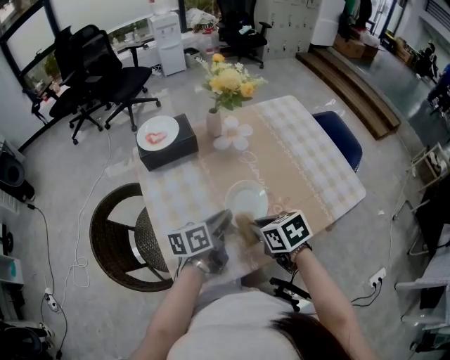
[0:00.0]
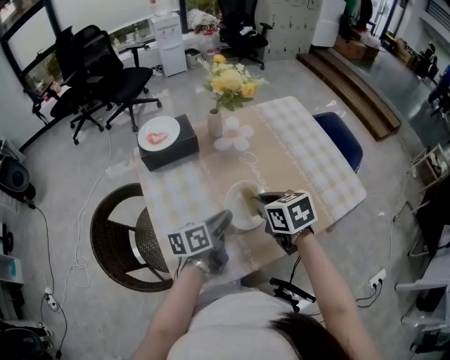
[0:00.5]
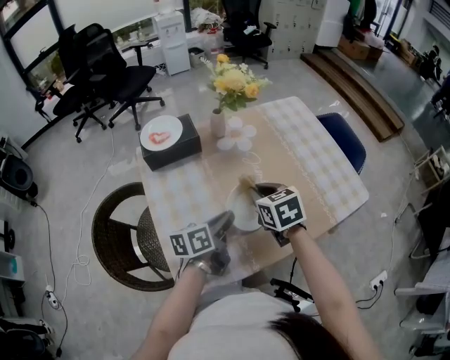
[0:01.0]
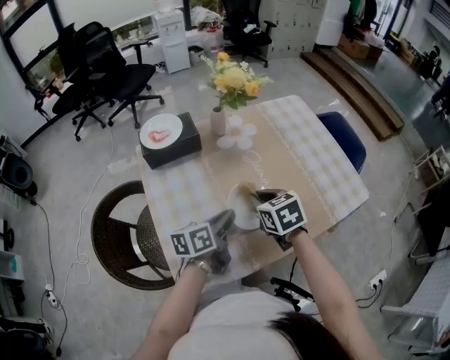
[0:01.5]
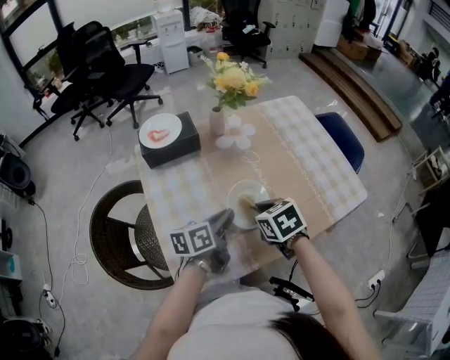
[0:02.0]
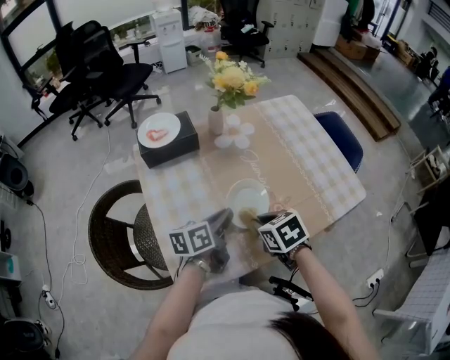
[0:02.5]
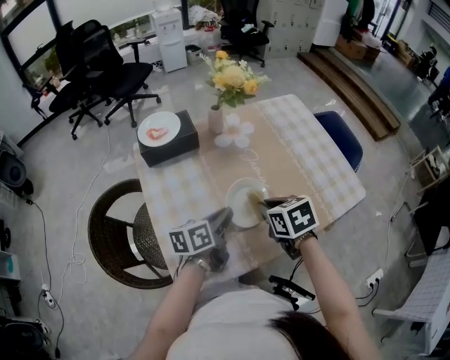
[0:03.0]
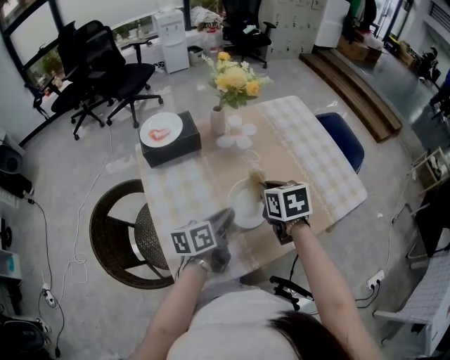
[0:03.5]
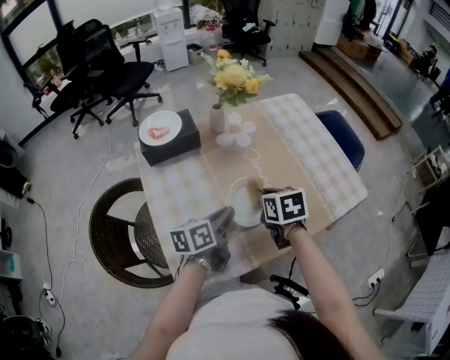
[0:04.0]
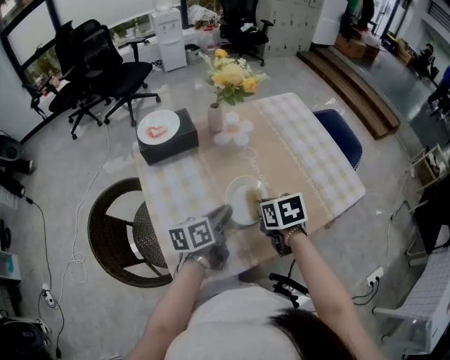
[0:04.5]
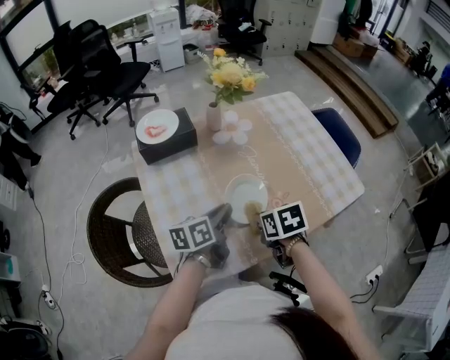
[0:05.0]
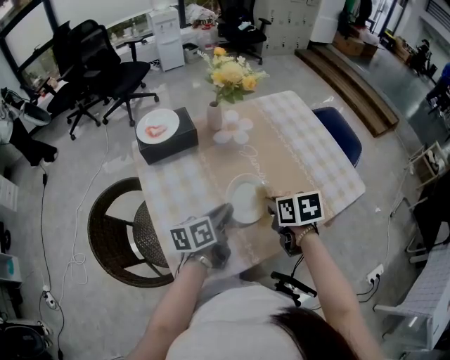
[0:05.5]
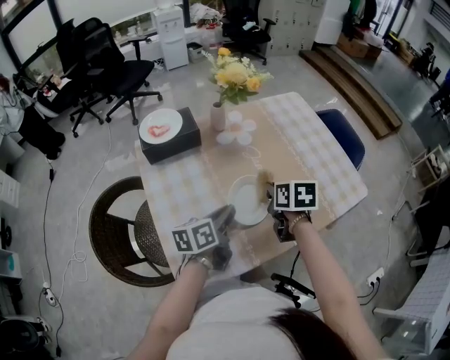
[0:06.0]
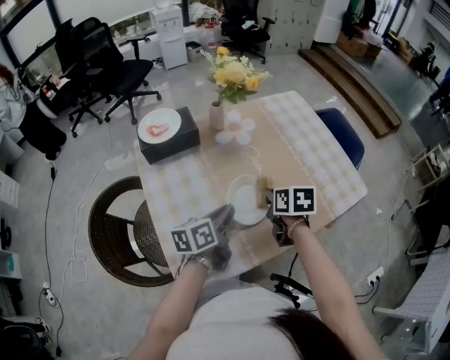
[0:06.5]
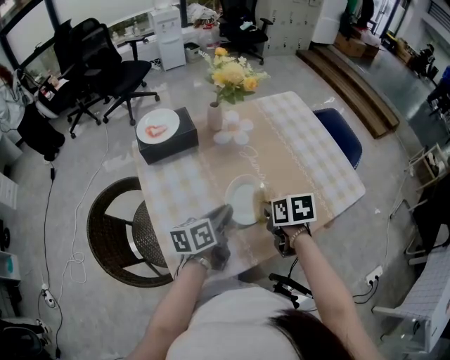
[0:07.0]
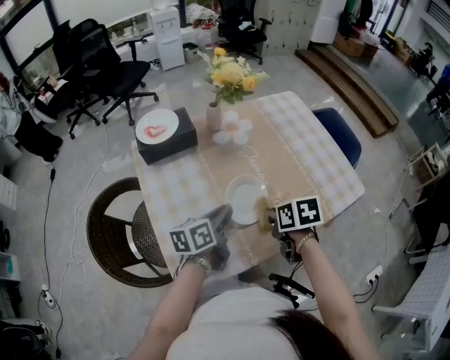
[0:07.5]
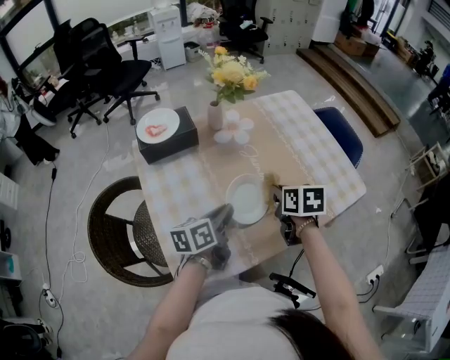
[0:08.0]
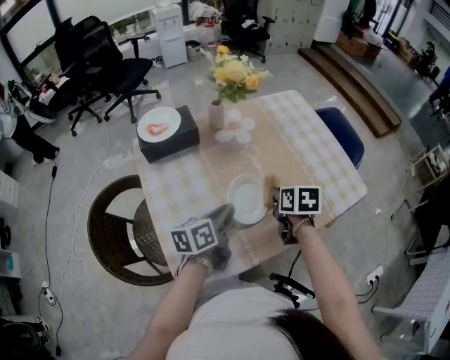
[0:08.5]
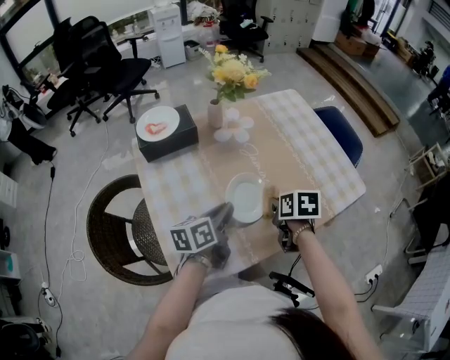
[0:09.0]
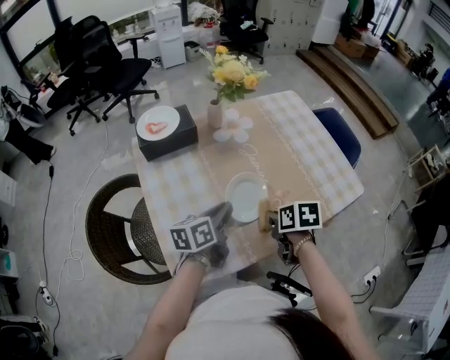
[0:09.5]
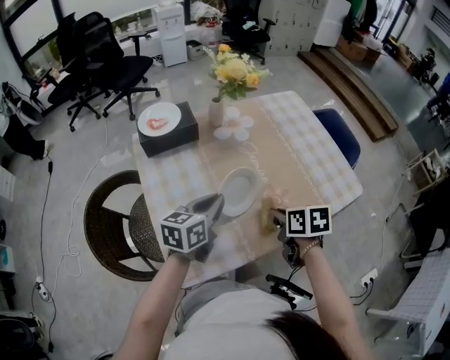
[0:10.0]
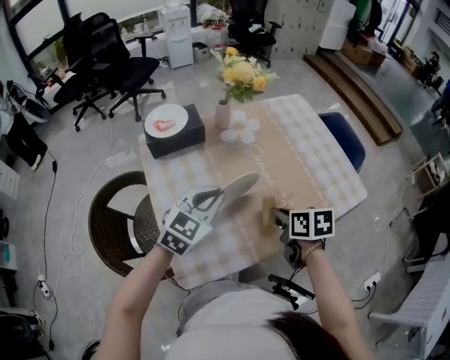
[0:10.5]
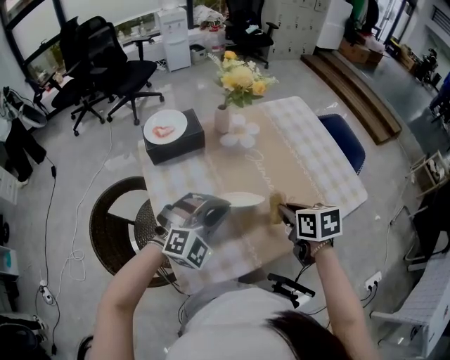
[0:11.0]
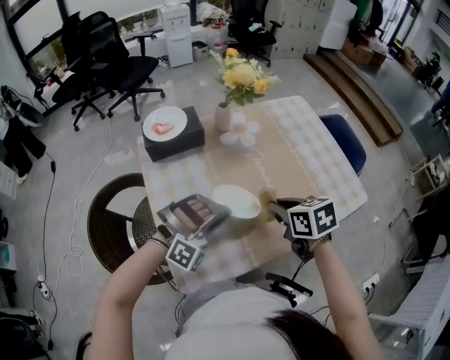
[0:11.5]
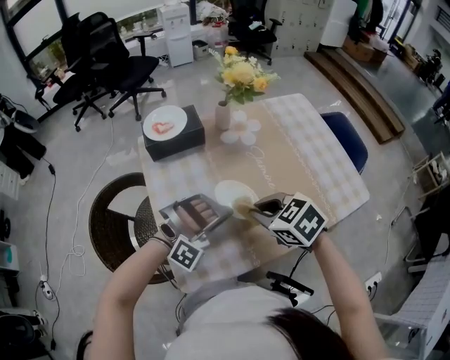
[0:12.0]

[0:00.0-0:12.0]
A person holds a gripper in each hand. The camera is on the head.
0:02.0 to 0:04.0: The right gripper changes place by roughly 5 cm.
0:08.0 to 0:10.0: The right gripper changes place by roughly 10 cm.
0:10.0 to 0:12.0: The right gripper shifts by approximately 10 cm, and rotates around the line of its fingers by roughly 50 degrees, counterclockwise from behind.

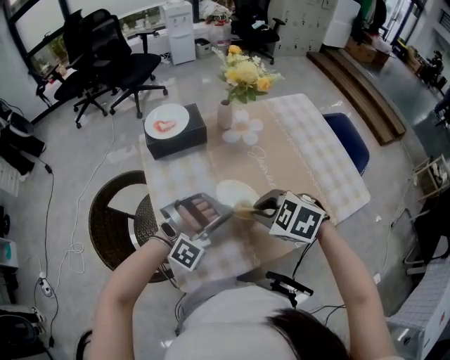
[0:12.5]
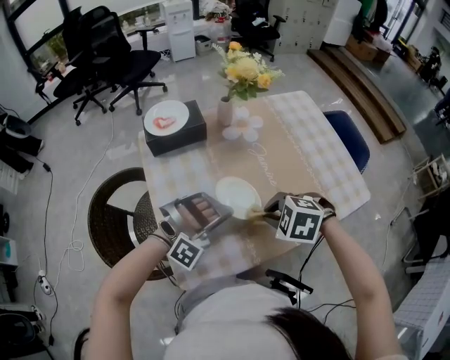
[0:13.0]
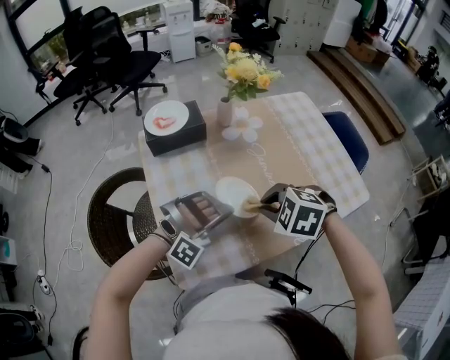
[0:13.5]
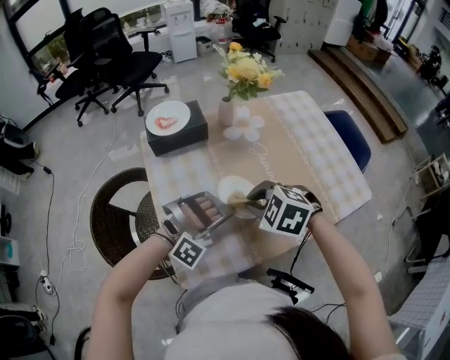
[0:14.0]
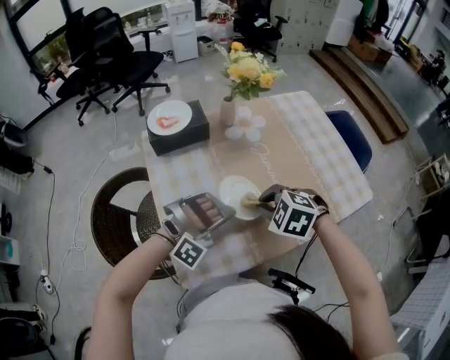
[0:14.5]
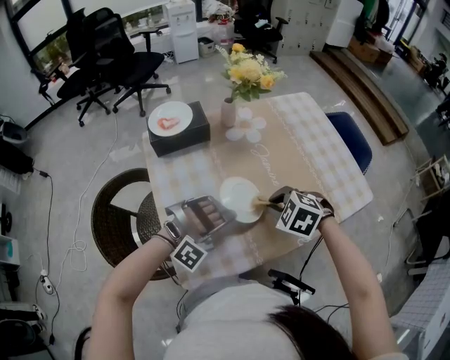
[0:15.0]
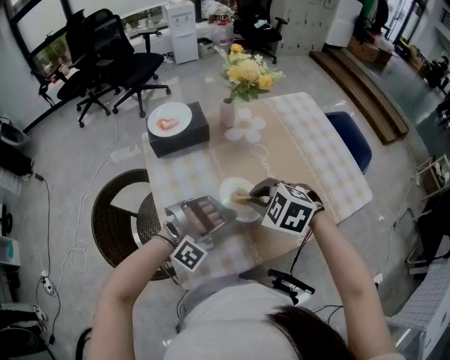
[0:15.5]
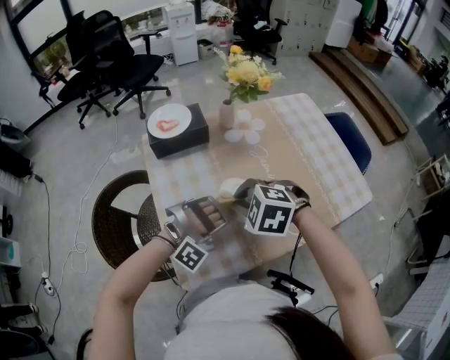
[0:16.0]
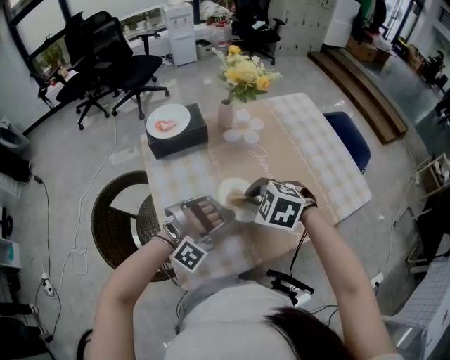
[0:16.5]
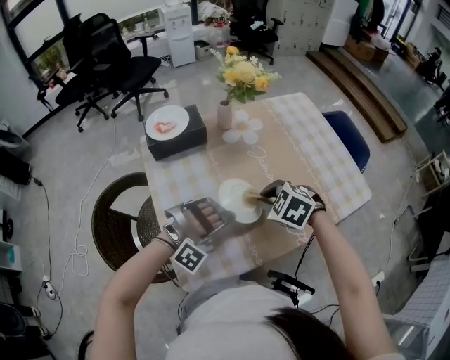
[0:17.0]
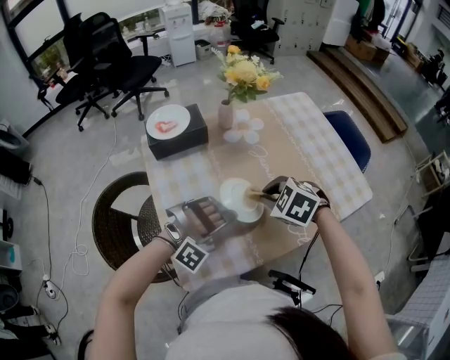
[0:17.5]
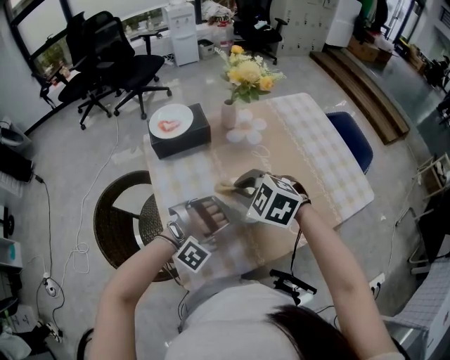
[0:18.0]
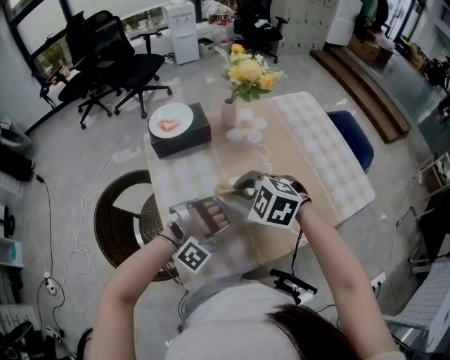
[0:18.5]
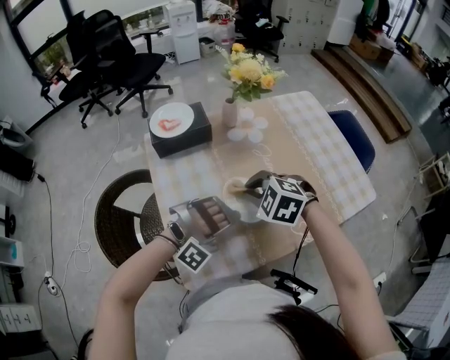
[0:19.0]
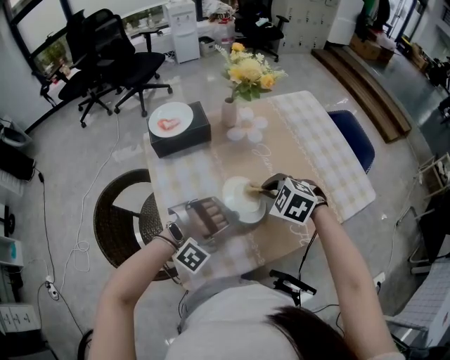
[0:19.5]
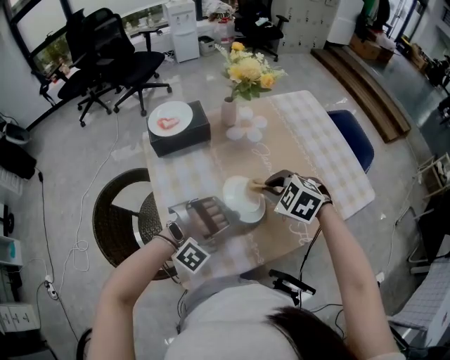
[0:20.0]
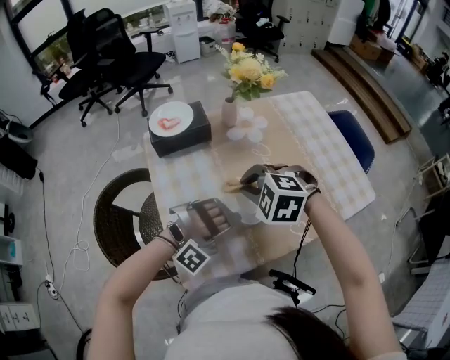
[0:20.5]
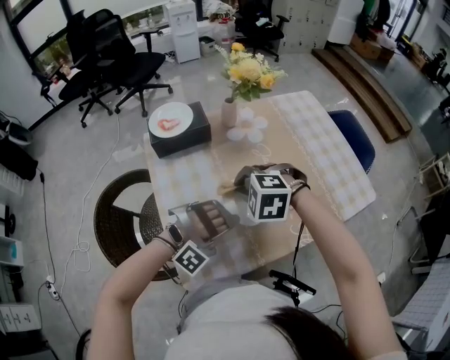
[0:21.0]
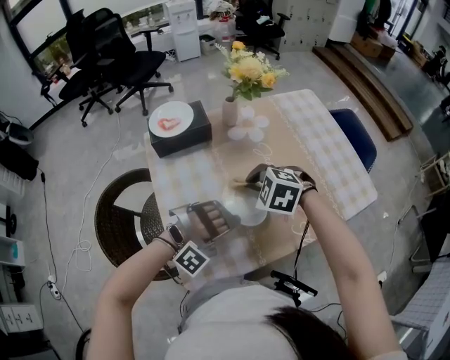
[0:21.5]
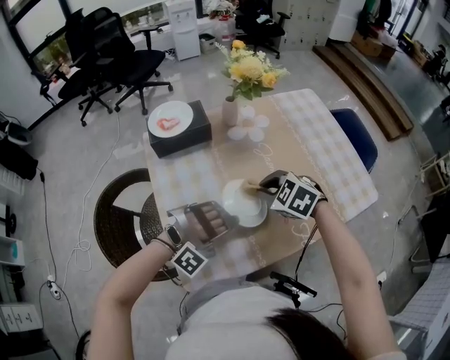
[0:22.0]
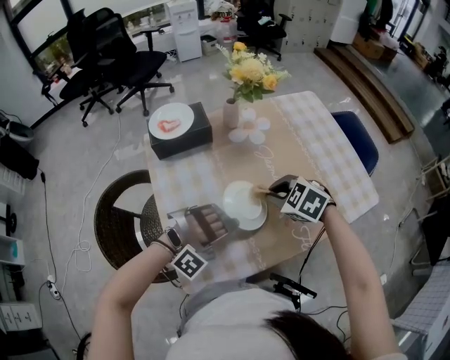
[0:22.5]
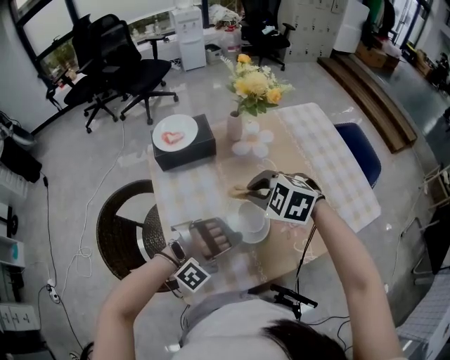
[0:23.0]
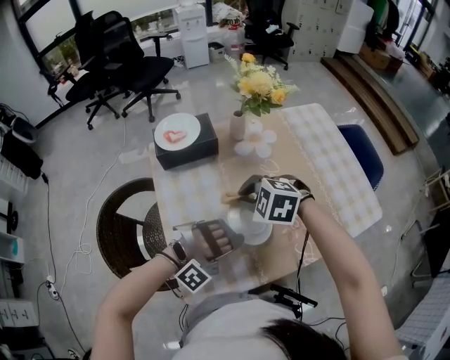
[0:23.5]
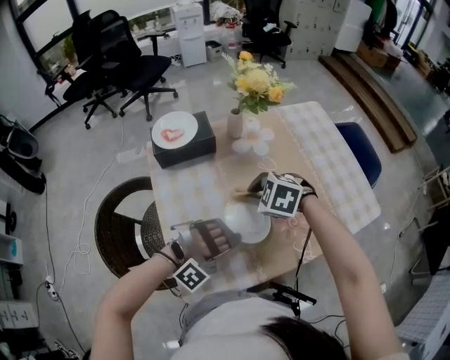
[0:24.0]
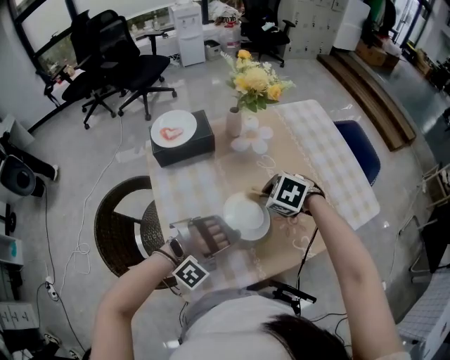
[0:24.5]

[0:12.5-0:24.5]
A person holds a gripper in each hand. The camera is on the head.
0:20.5 to 0:22.5: The right gripper ends up about 10 cm from where it was, and changes its angle by roughly 20 degrees.
0:22.5 to 0:24.5: The right gripper travels upward and back again, roughly 5 cm each way.

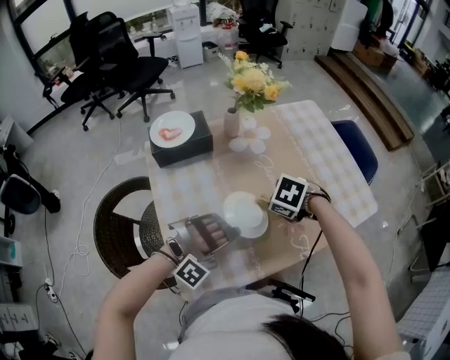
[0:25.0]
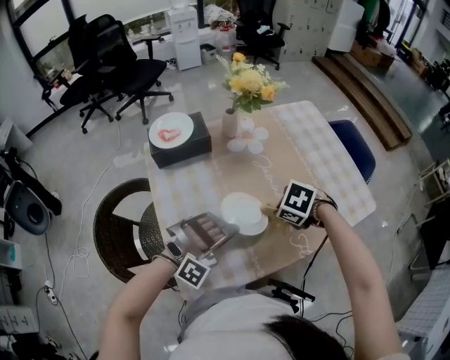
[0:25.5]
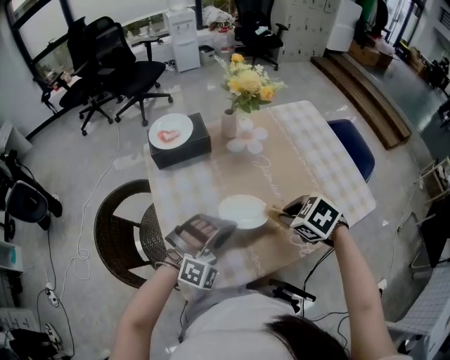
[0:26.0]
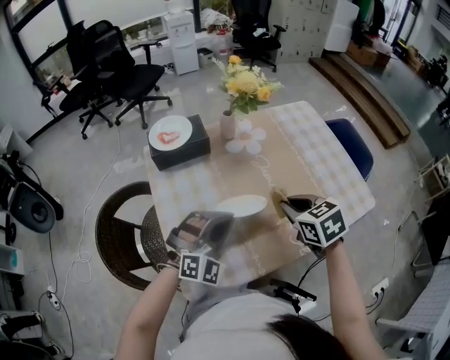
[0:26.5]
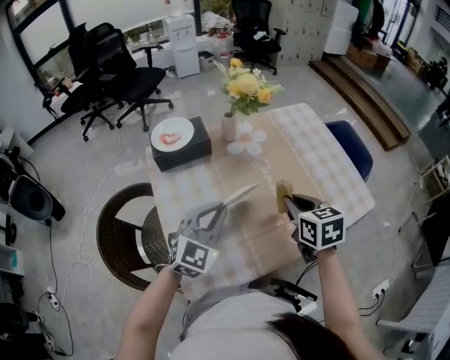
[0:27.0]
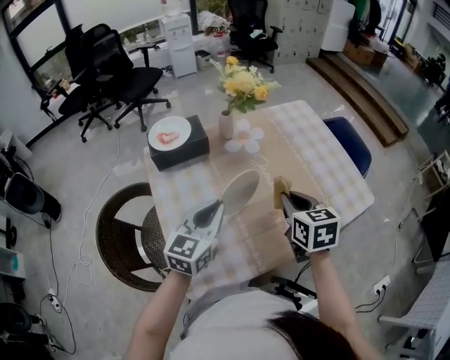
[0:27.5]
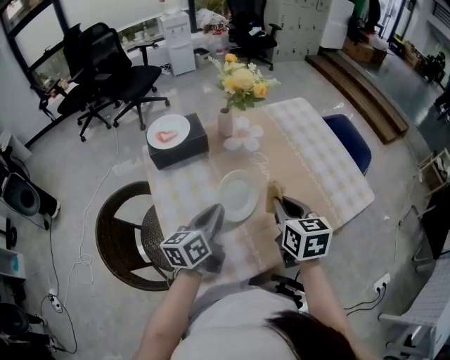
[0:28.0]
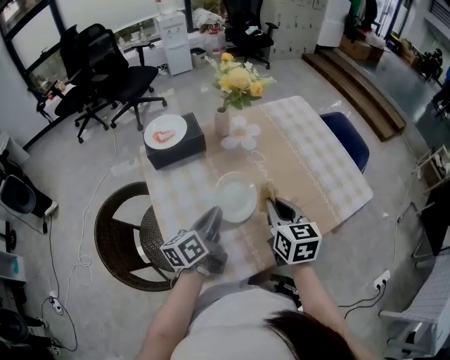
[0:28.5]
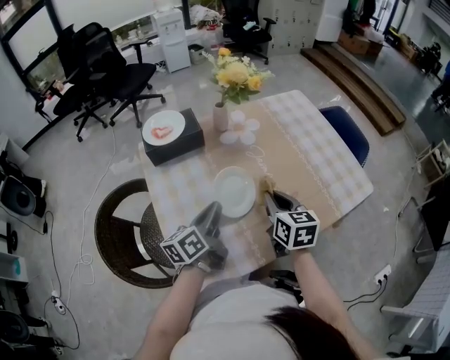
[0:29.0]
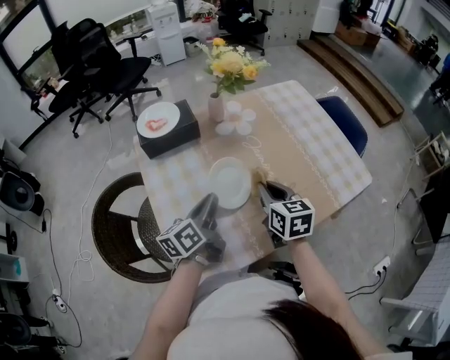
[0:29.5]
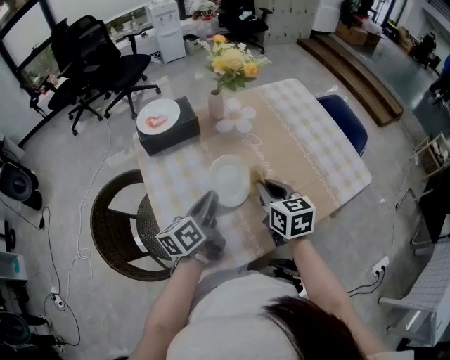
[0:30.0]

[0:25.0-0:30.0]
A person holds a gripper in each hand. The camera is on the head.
0:25.0 to 0:27.5: The right gripper goes some 10 cm upward, and points its fingers approximately 50 degrees further upward.
0:27.5 to 0:30.0: The right gripper moves downward, roughly 5 cm.
